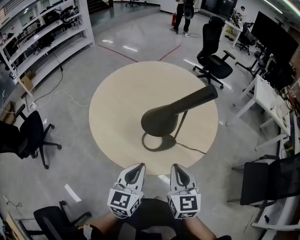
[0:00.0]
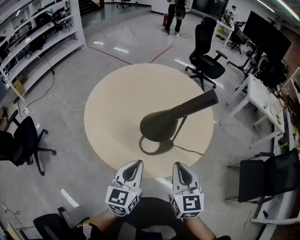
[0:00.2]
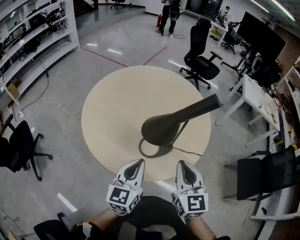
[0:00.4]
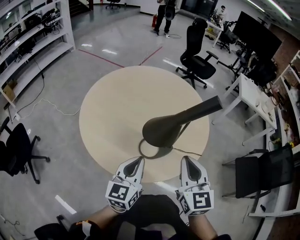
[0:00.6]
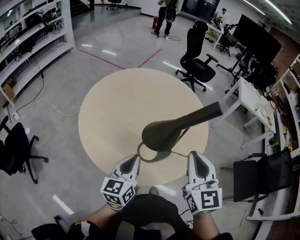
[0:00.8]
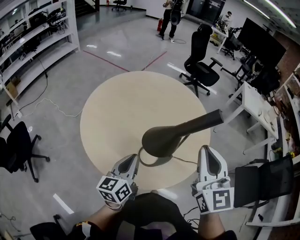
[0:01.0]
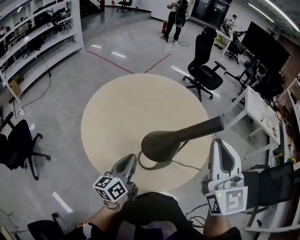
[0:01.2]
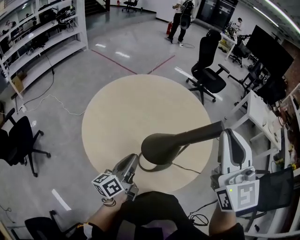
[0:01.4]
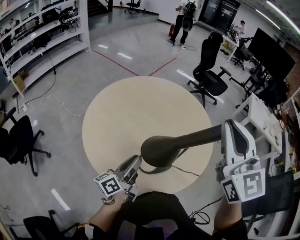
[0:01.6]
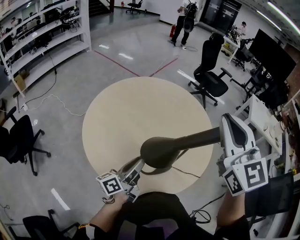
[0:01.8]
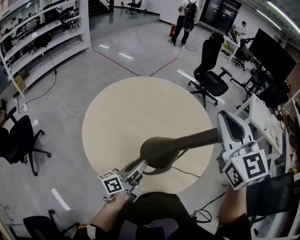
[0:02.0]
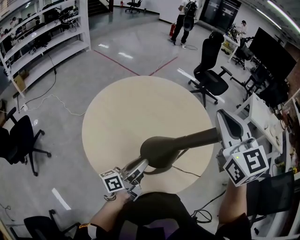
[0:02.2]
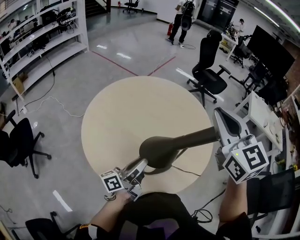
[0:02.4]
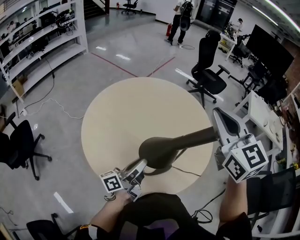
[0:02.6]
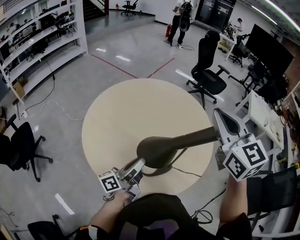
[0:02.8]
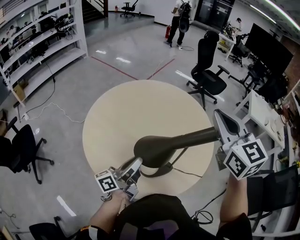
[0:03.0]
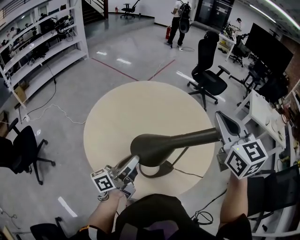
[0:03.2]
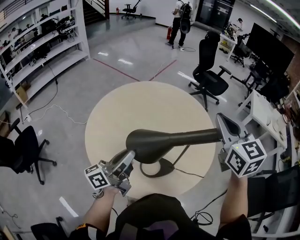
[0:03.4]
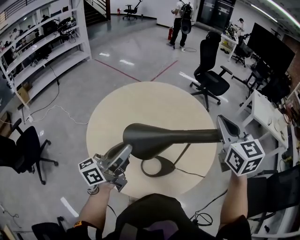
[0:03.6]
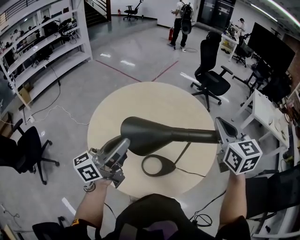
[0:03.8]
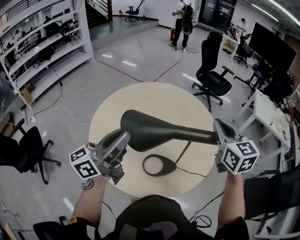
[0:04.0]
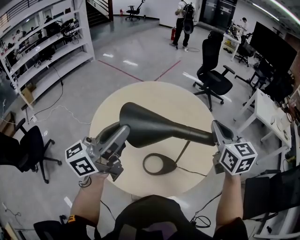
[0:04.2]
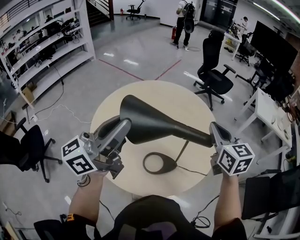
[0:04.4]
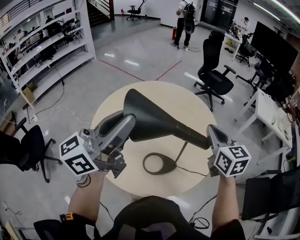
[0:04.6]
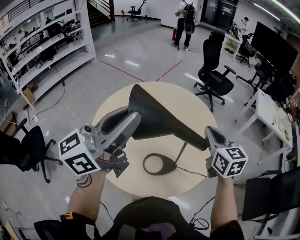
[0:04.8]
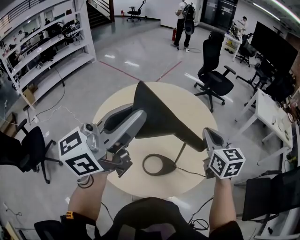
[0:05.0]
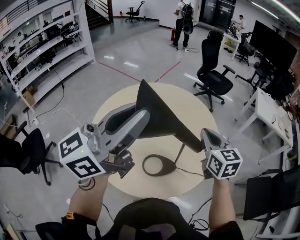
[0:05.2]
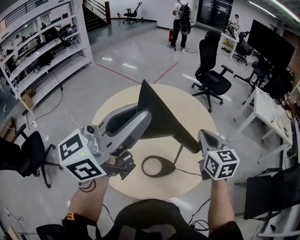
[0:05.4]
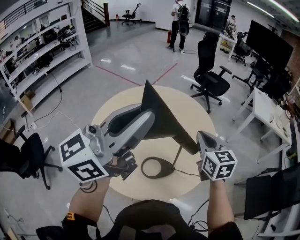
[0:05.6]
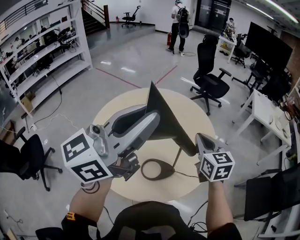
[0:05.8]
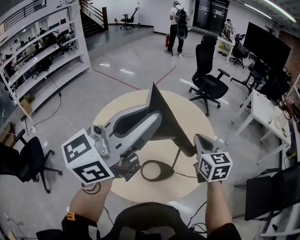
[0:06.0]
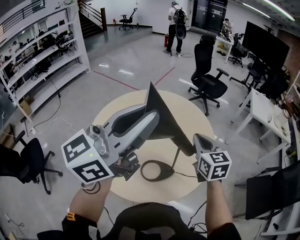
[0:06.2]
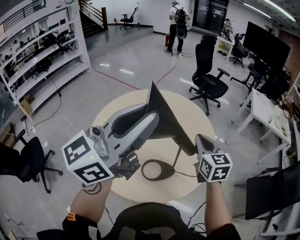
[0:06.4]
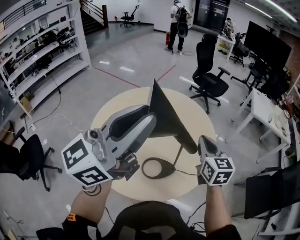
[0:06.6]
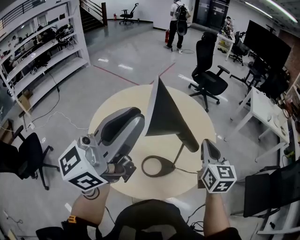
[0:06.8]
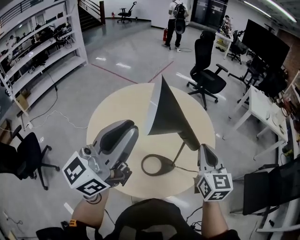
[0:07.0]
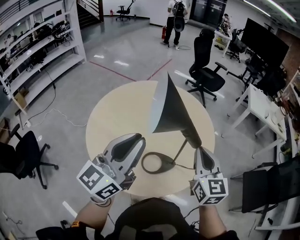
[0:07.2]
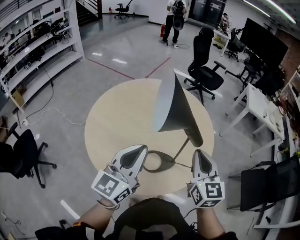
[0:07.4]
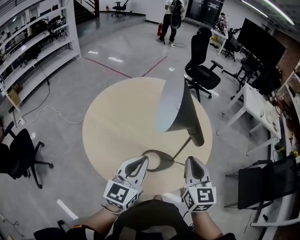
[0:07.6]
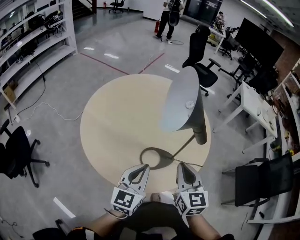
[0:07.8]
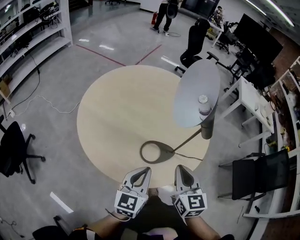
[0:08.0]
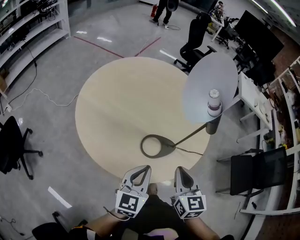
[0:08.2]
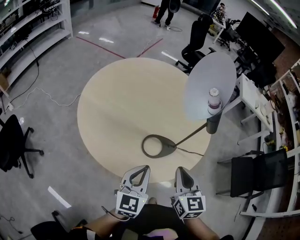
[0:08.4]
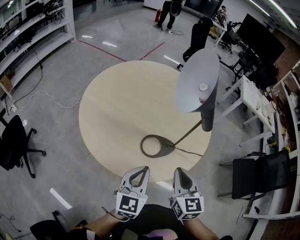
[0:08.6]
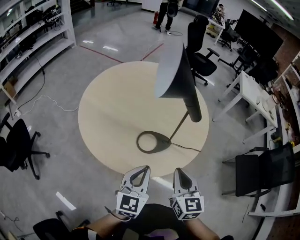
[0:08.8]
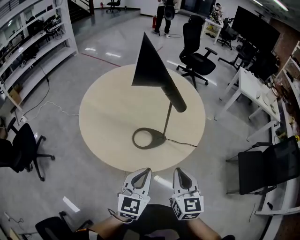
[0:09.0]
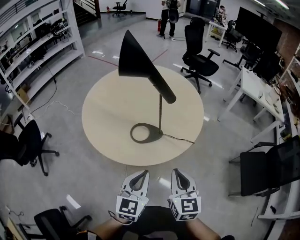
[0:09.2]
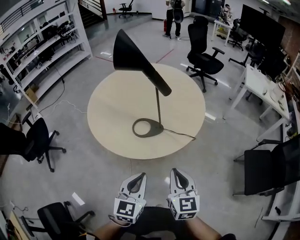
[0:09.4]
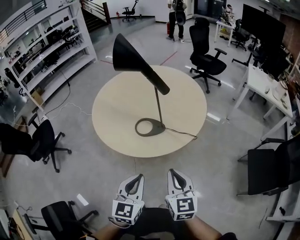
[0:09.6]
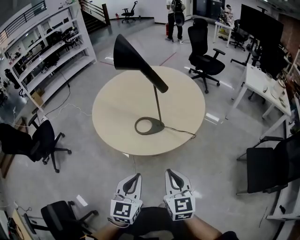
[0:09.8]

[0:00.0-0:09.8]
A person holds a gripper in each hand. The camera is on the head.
0:00.0 to 0:01.4: The right gripper shifts some 30 cm upward and forward, and changes its angle by about 30 degrees. The left gripper heads forward and to the left, covering some 20 cm, and rotates around the line of its fingers by some 40 degrees, counterclockwise from behind.
0:01.4 to 0:02.8: The left gripper turns by some 20 degrees; the right gripper moves forward, about 10 cm.
0:02.8 to 0:04.2: The left gripper shifts some 20 cm upward, and changes its angle by roughly 30 degrees; the right gripper travels downward and to the right by about 10 cm.
0:04.2 to 0:05.6: The left gripper is displaced upward and to the right by roughly 15 cm, while the right gripper is displaced downward by about 5 cm.
0:05.6 to 0:07.0: The right gripper moves backward, about 10 cm, while the left gripper is displaced to the left and downward by approximately 10 cm.
0:07.0 to 0:08.4: The left gripper moves downward, roughly 30 cm, and angles its fingers downward, by roughly 40 degrees. Meanwhile the right gripper is displaced downward, backward and to the left by about 25 cm.
0:08.4 to 0:09.8: Both grippers travel together backward and to the right, roughly 35 cm.

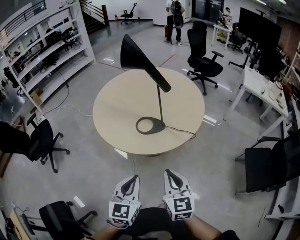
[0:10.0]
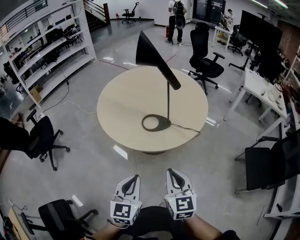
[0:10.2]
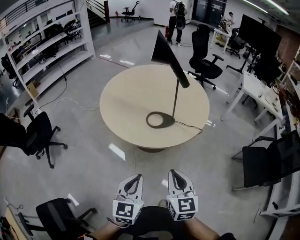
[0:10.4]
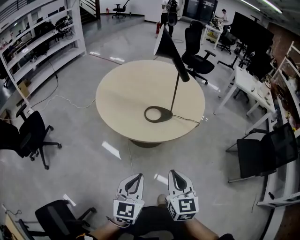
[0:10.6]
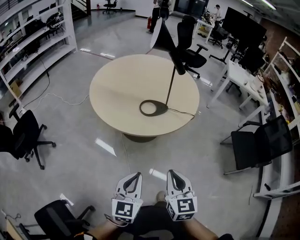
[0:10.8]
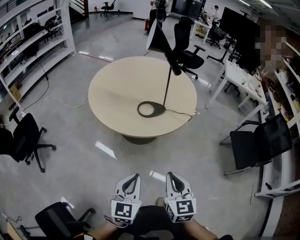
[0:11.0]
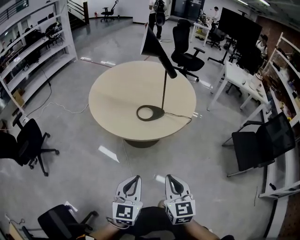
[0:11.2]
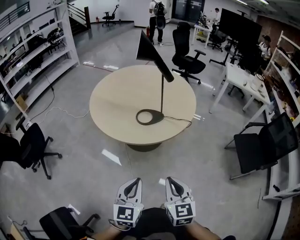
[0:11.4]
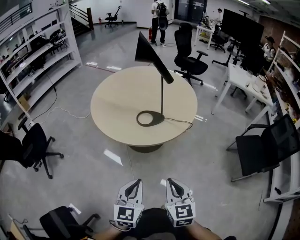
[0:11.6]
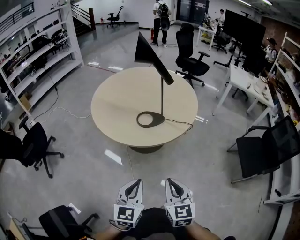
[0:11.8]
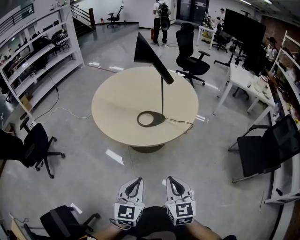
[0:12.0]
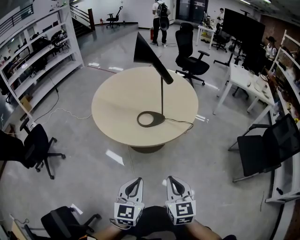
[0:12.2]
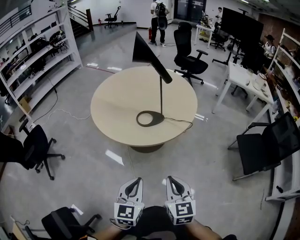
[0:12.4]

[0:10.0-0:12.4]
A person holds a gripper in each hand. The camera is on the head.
0:10.0 to 0:11.2: The right gripper shifts about 20 cm backward and to the left. Meanwhile the left gripper shifts approximately 20 cm to the left and backward.
0:11.2 to 0:12.4: Both grippers travel together to the right, some 5 cm.

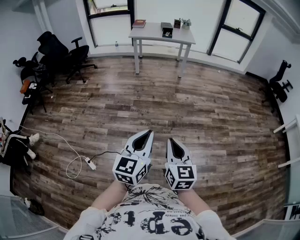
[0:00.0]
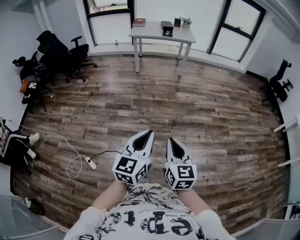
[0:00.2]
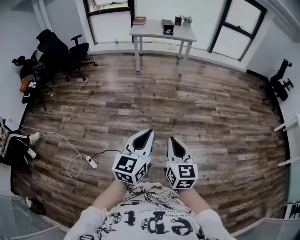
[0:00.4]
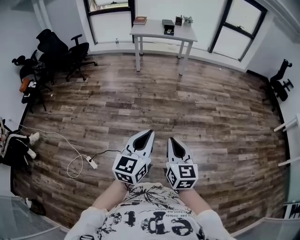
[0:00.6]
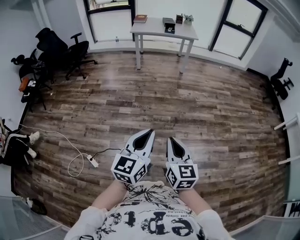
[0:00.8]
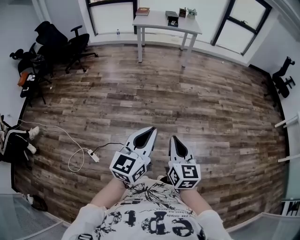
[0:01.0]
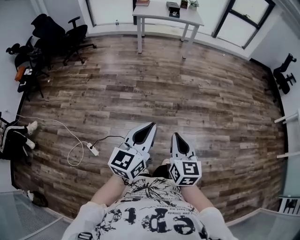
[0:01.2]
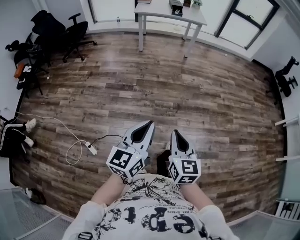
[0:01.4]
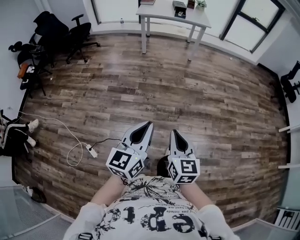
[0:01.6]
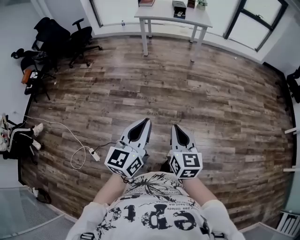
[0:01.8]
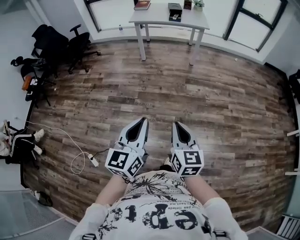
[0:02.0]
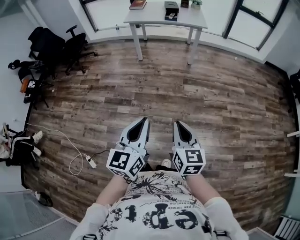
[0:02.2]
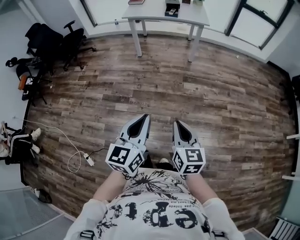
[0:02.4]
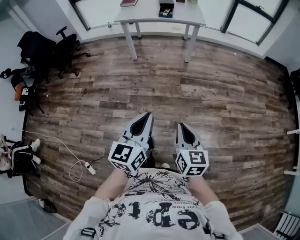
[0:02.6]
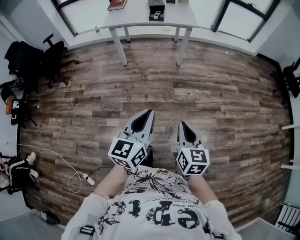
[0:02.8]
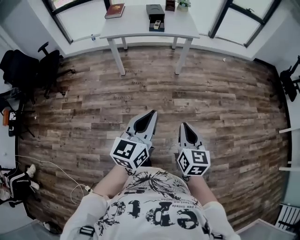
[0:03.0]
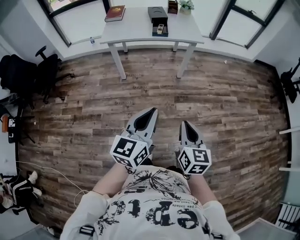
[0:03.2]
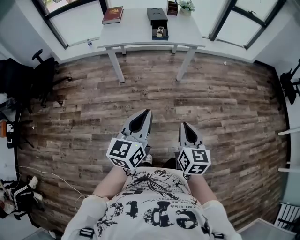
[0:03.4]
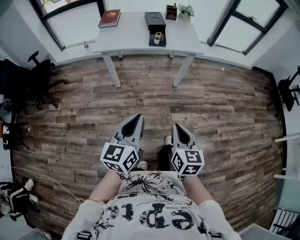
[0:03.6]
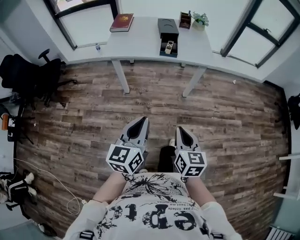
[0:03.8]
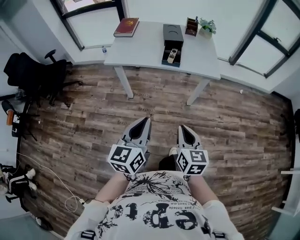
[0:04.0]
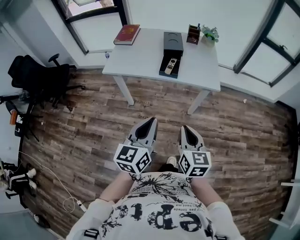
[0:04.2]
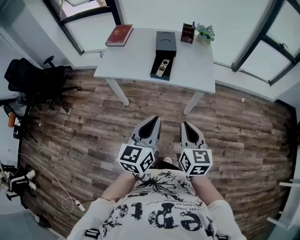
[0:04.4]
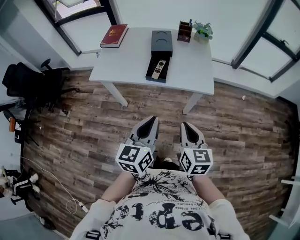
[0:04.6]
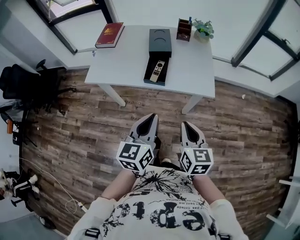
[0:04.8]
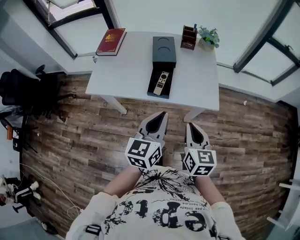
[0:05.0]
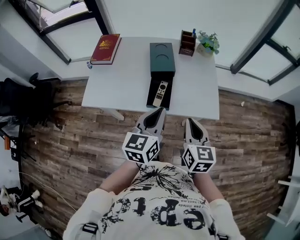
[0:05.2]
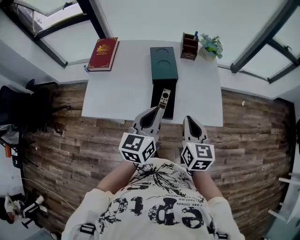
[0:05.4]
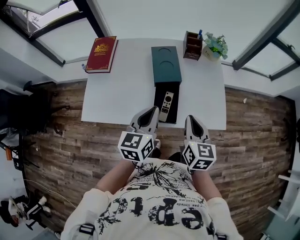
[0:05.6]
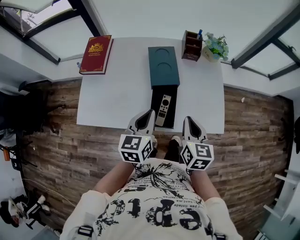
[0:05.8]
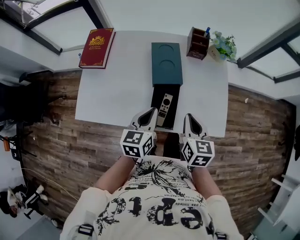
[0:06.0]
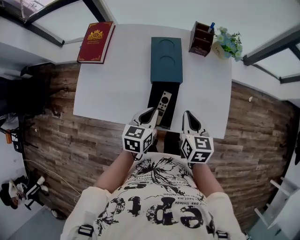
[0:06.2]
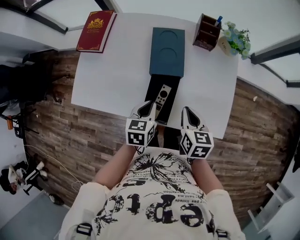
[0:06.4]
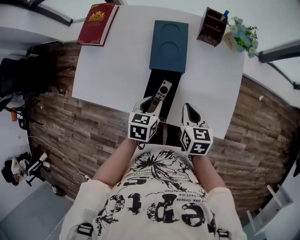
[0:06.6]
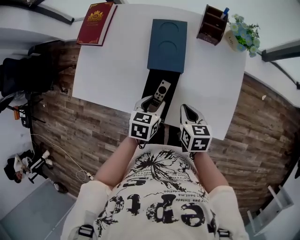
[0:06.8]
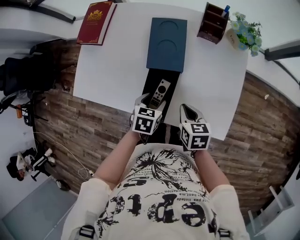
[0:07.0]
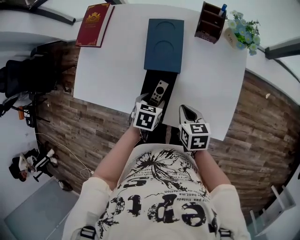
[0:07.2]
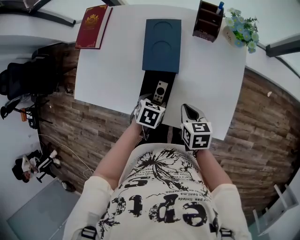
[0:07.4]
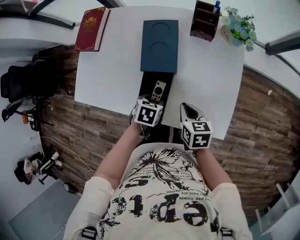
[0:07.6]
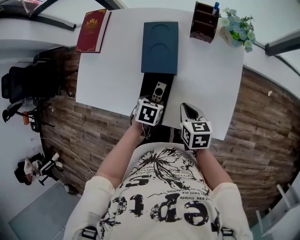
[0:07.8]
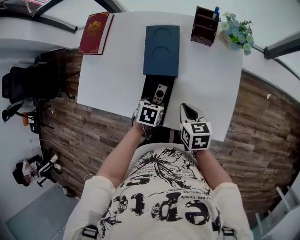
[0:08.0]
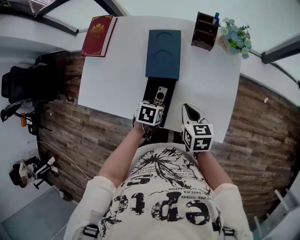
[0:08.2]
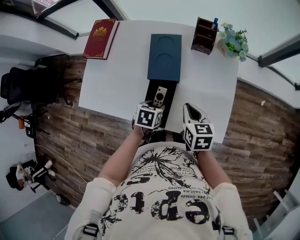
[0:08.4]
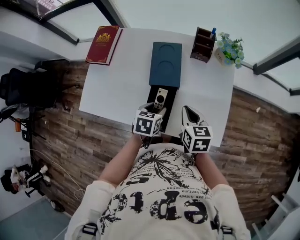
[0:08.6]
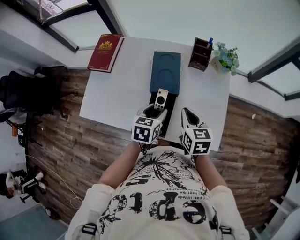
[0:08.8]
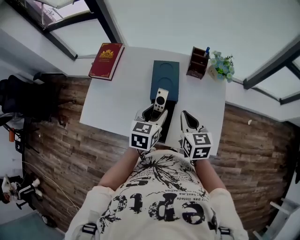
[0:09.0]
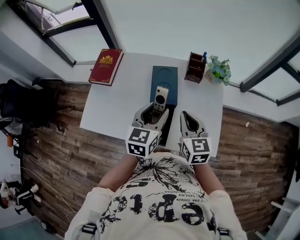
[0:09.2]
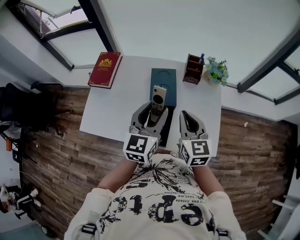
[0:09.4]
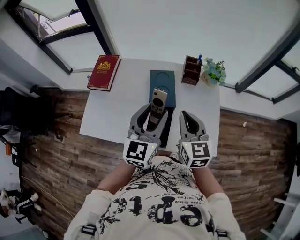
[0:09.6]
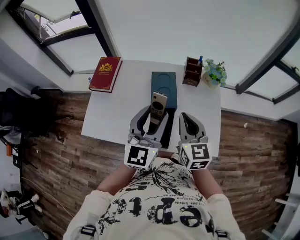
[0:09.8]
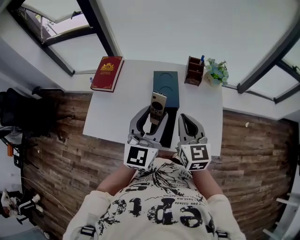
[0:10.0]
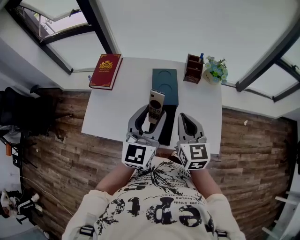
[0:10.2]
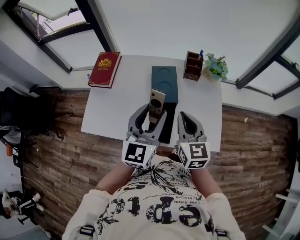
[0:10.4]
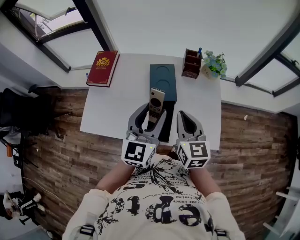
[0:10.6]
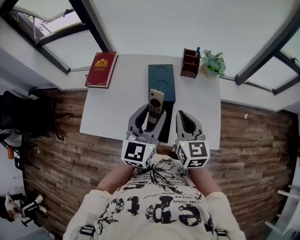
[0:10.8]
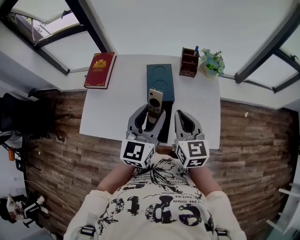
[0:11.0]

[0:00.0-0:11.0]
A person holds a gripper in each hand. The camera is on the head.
0:00.0 to 0:01.6: The left gripper goes some 10 cm forward and to the left, while the right gripper travels forward and downward by about 10 cm.
0:01.6 to 0:03.2: The pair of grippers is taken forward, some 60 cm.
0:03.2 to 0:04.8: Both grippers are carried forward, roughly 50 cm.
0:04.8 to 0:06.2: The right gripper travels forward by approximately 35 cm; the left gripper moves forward and downward, approximately 35 cm, and swivels some 30 degrees.
0:06.2 to 0:07.8: Both grippers move downward, about 10 cm. The right gripper rotates some 20 degrees. Meanwhile the left gripper points its fingers approximately 40 degrees further downward, and opens.
0:07.8 to 0:09.4: Both grippers travel together upward, about 25 cm. The left gripper angles its fingers upward, by roughly 60 degrees. The right gripper changes its angle by some 40 degrees.
0:09.4 to 0:11.0: The grippers make only small movements.
